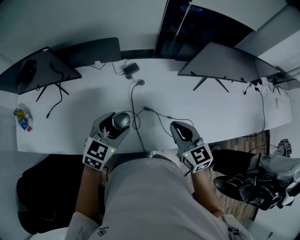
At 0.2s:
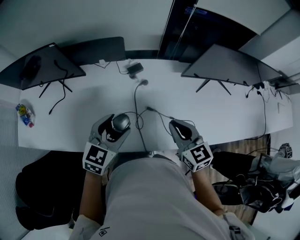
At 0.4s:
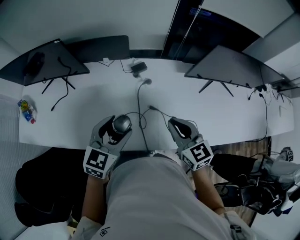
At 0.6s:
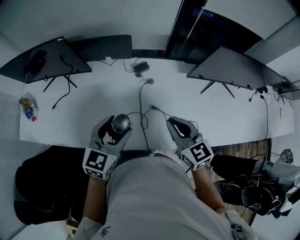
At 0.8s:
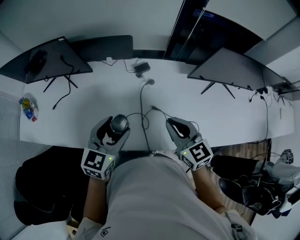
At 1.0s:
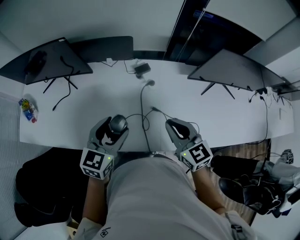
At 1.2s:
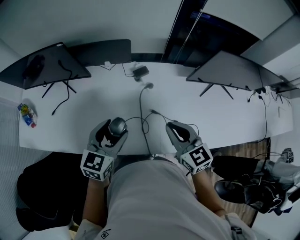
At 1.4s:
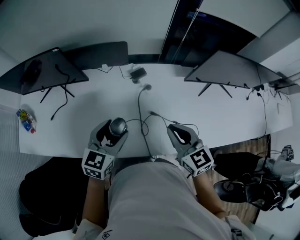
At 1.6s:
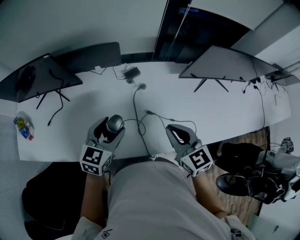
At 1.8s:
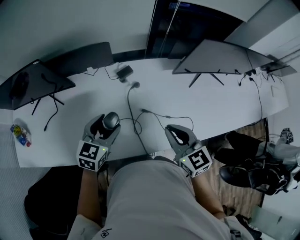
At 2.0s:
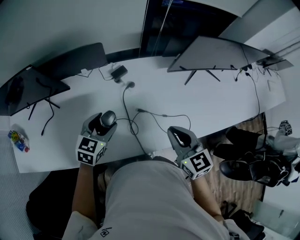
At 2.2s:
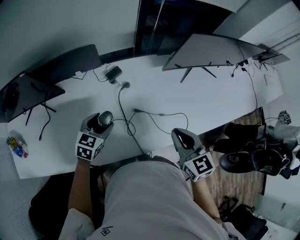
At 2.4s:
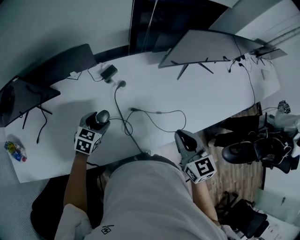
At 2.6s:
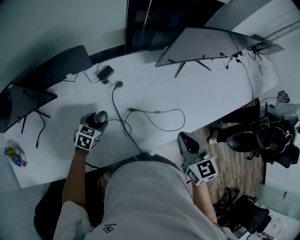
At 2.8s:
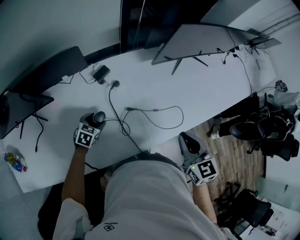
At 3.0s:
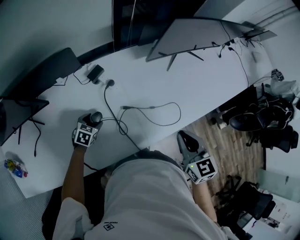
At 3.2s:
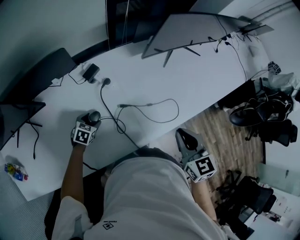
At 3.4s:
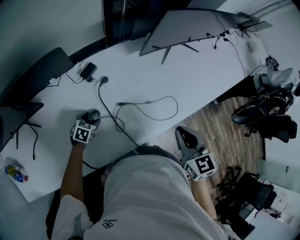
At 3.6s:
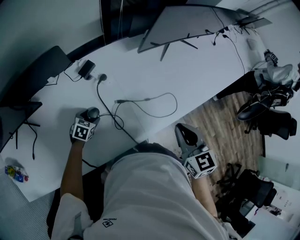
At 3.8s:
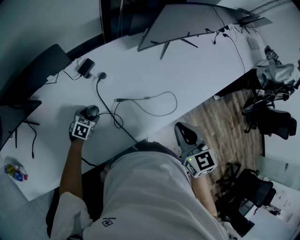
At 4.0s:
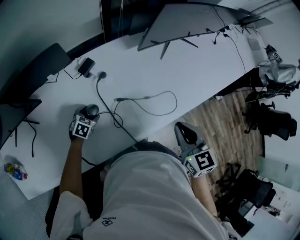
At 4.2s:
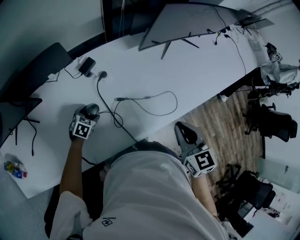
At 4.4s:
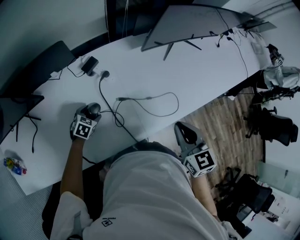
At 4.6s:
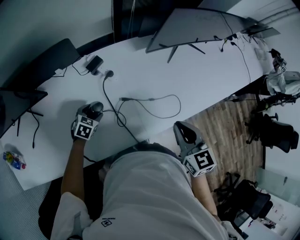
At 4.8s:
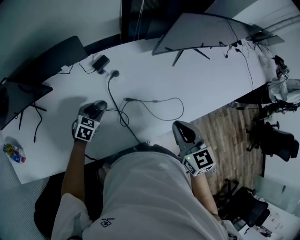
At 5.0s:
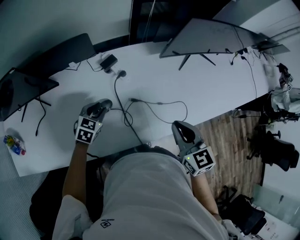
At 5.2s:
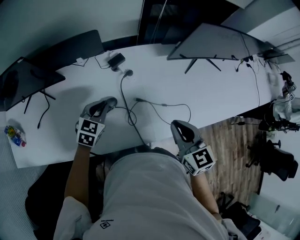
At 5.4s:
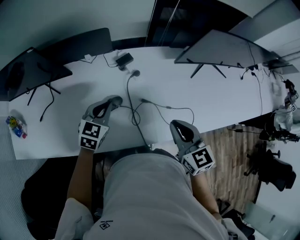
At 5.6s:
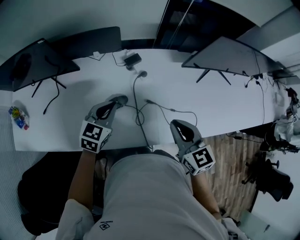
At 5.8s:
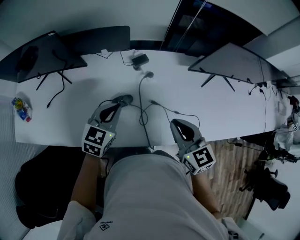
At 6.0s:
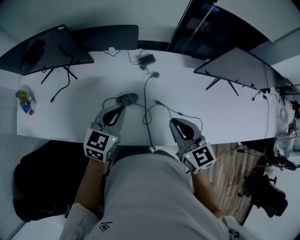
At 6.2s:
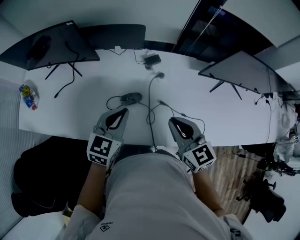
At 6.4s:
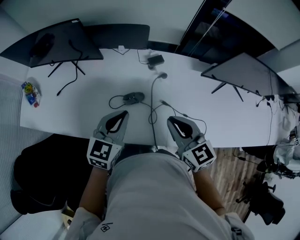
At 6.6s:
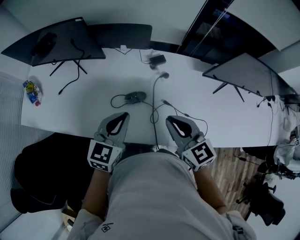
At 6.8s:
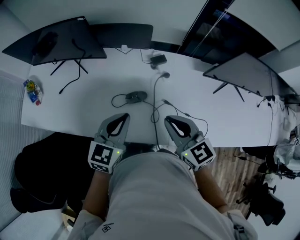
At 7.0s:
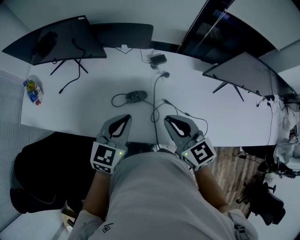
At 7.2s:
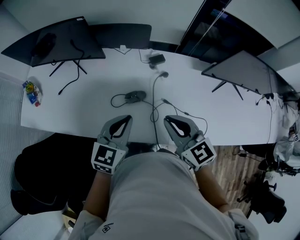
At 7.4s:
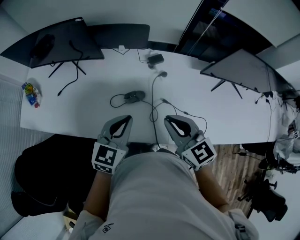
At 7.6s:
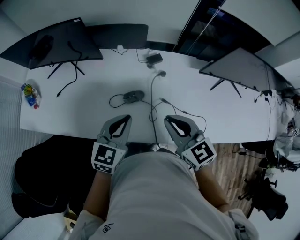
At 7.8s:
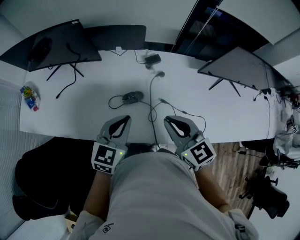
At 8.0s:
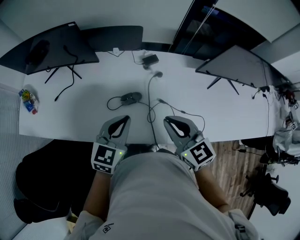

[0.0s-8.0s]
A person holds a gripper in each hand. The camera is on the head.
1.6s to 3.2s: The left gripper goes some 25 cm downward, and points its fingers roughly 30 degrees further downward. Meanwhile the right gripper shifts by approximately 15 cm, and changes its angle by about 30 degrees.
3.2s to 4.8s: The left gripper shifts approximately 5 cm upward.
4.8s to 6.4s: The right gripper changes place by approximately 15 cm, and swivels roughly 30 degrees. The left gripper is displaced upward by some 20 cm, points its fingers some 30 degrees further upward, and closes up.
6.4s to 8.0s: The grippers stay close to where they were, moving slightly.

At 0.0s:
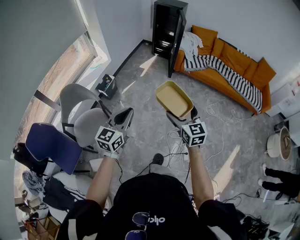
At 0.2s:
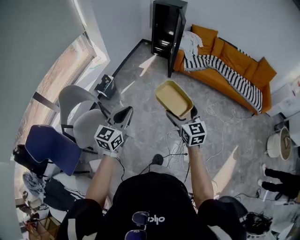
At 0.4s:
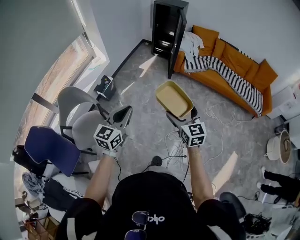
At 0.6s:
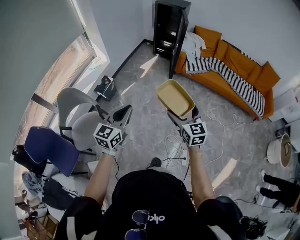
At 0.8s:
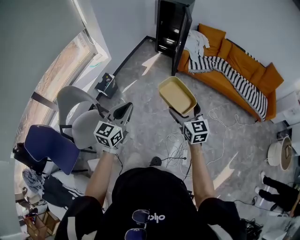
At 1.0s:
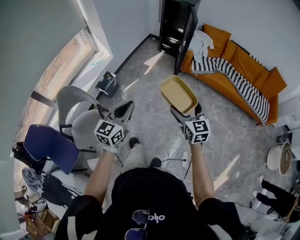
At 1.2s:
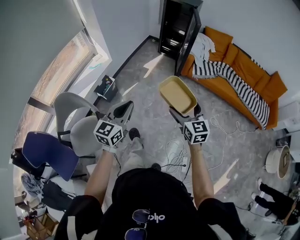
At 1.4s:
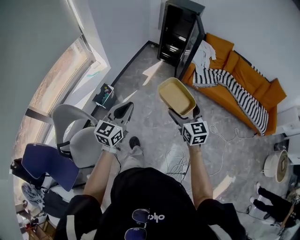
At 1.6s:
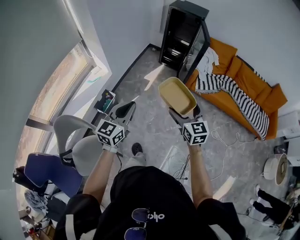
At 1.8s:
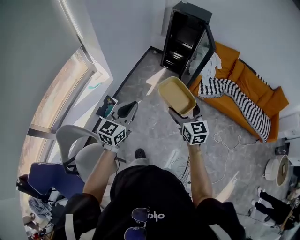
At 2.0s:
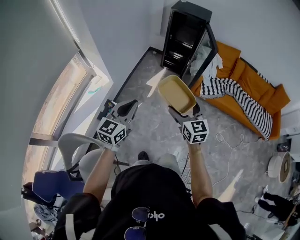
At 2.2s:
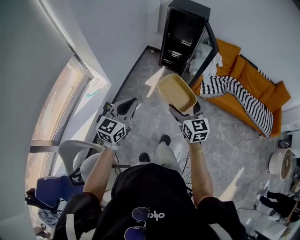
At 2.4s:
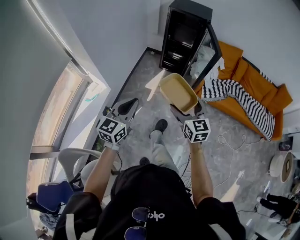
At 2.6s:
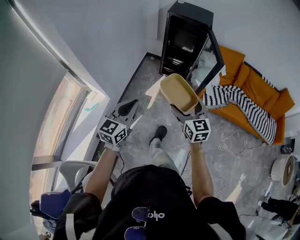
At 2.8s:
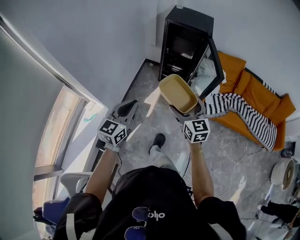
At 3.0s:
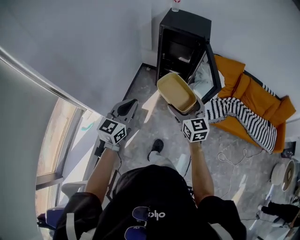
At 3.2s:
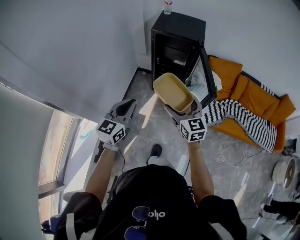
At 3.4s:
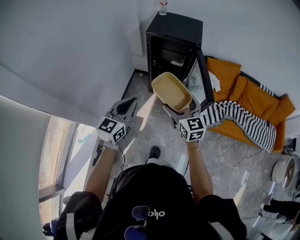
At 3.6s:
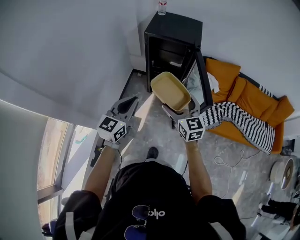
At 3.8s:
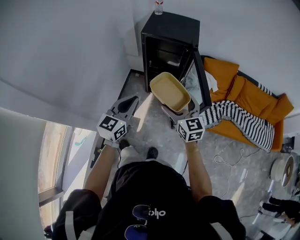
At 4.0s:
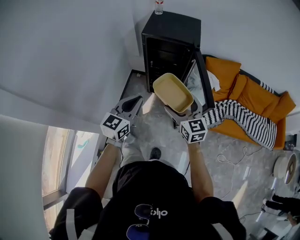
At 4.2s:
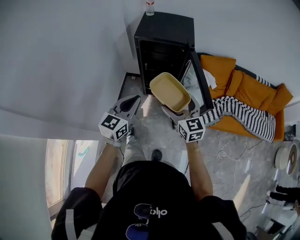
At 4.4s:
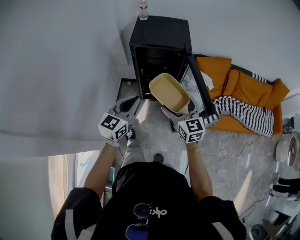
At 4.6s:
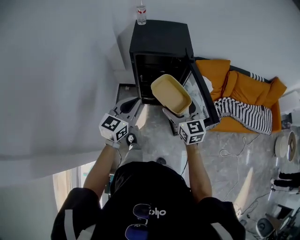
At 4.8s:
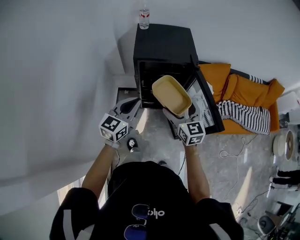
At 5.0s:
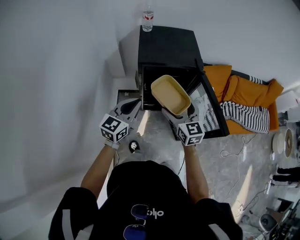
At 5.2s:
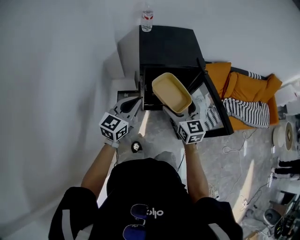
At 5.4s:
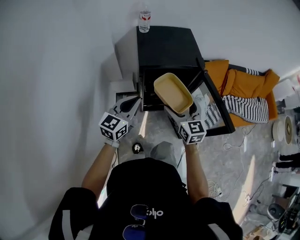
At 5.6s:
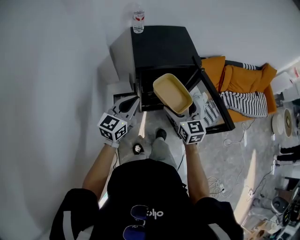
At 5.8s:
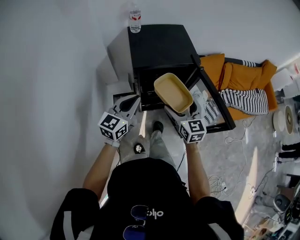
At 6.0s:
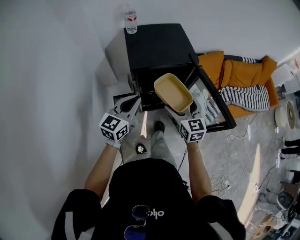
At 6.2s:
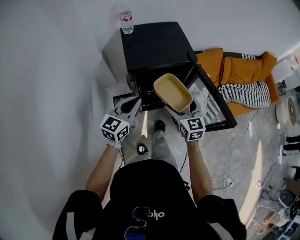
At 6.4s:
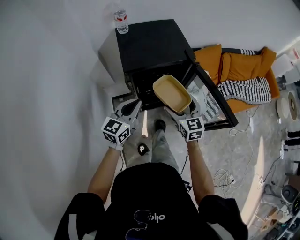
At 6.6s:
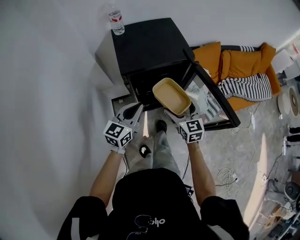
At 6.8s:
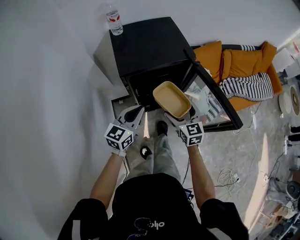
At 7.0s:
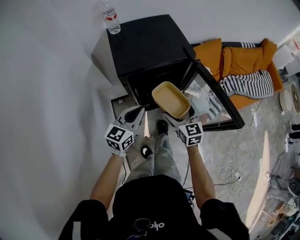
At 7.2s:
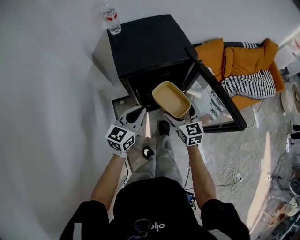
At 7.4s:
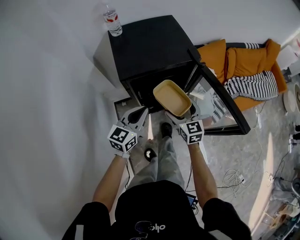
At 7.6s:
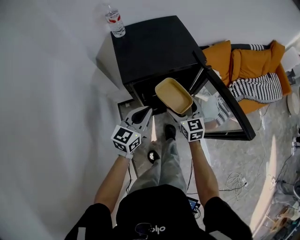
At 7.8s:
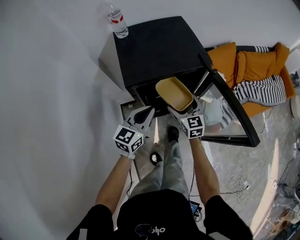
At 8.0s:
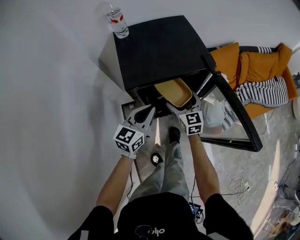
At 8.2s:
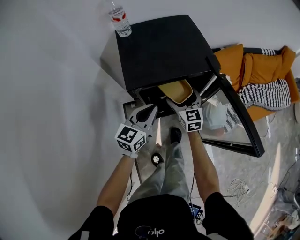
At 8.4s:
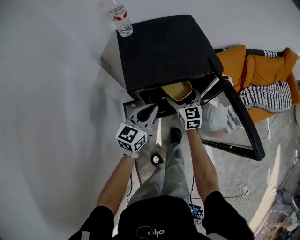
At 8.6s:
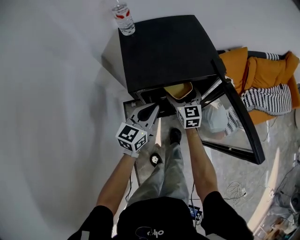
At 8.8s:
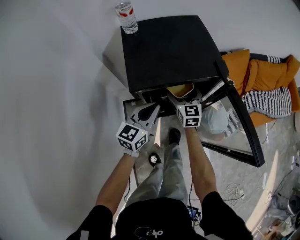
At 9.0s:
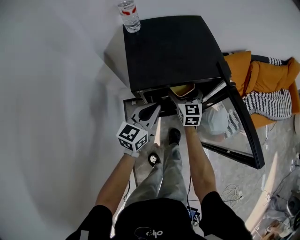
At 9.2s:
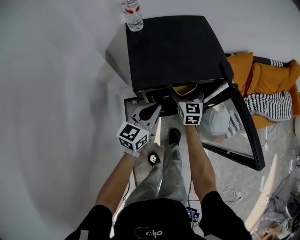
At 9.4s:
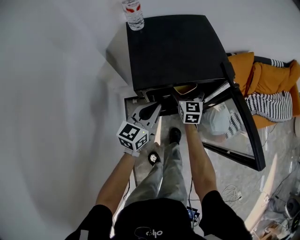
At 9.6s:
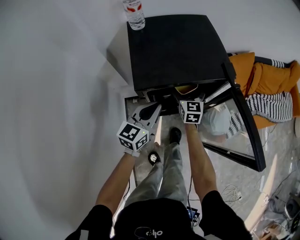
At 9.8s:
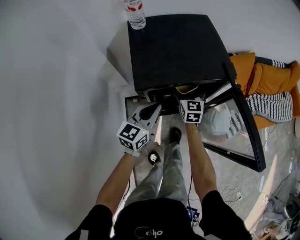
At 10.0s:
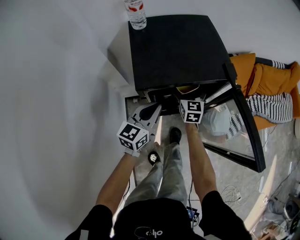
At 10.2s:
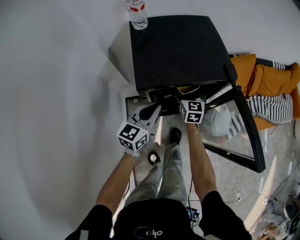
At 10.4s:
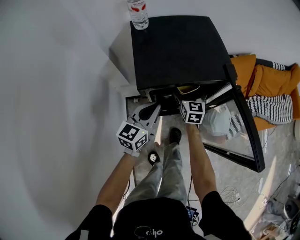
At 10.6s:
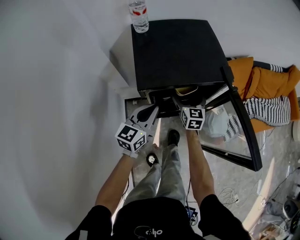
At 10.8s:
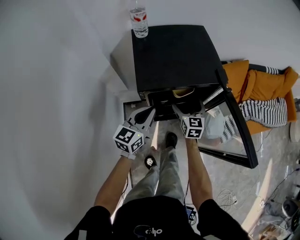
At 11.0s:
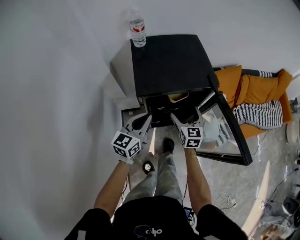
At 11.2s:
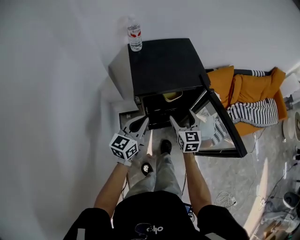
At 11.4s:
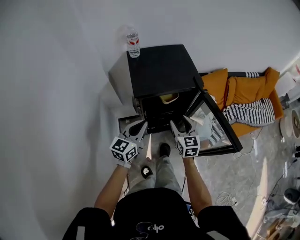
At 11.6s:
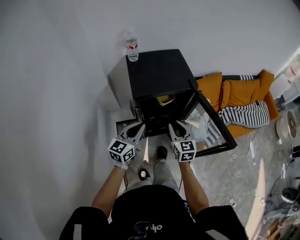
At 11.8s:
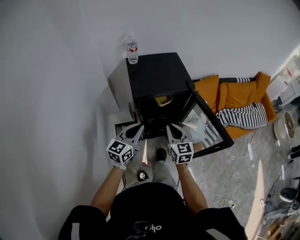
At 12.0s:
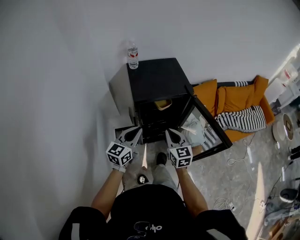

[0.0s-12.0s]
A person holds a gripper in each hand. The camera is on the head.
0.0s to 1.6s: The pair of grippers is taken forward, approximately 40 cm.
1.6s to 3.0s: The two grippers travel together, forward, approximately 50 cm.
3.0s to 4.4s: The grippers both shift forward by about 25 cm.
4.4s to 6.0s: The two grippers go roughly 20 cm forward and to the left. The right gripper changes its angle by approximately 20 degrees.
6.0s to 7.6s: The grippers both shift downward and forward by some 15 cm.
7.6s to 9.0s: The right gripper travels forward and to the left by some 15 cm, while the left gripper goes approximately 5 cm forward.
9.0s to 10.4s: The grippers make only small movements.
10.4s to 12.0s: The left gripper shifts some 20 cm backward and upward, while the right gripper heads backward and upward, covering about 30 cm, and closes its fingers.

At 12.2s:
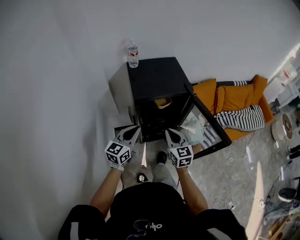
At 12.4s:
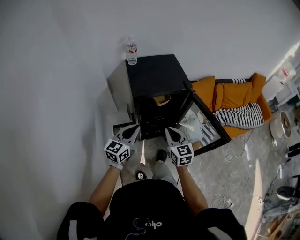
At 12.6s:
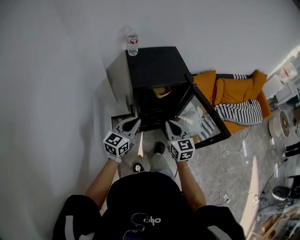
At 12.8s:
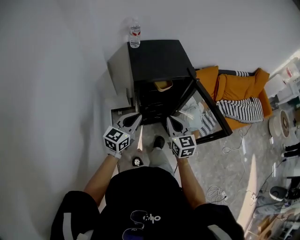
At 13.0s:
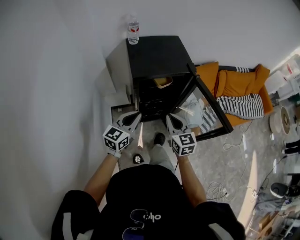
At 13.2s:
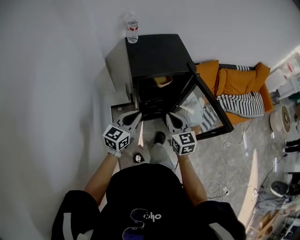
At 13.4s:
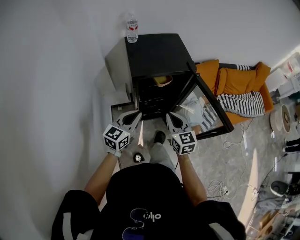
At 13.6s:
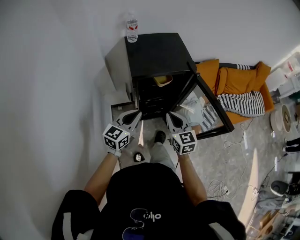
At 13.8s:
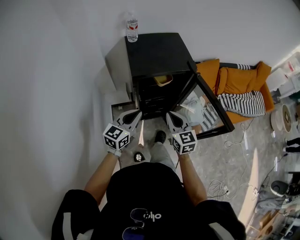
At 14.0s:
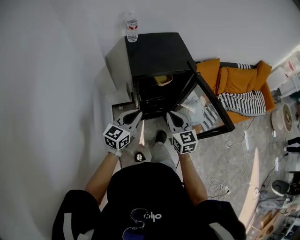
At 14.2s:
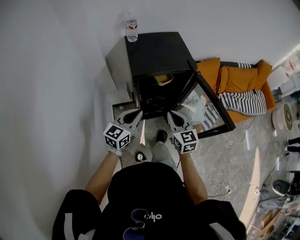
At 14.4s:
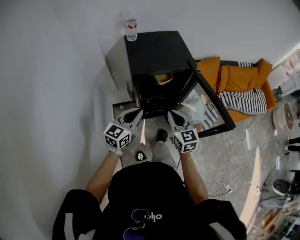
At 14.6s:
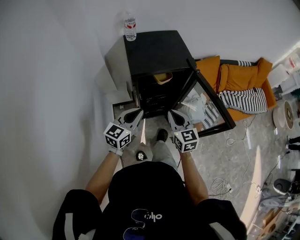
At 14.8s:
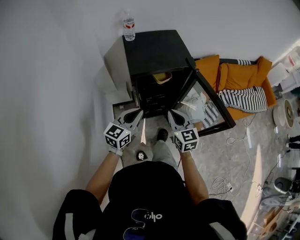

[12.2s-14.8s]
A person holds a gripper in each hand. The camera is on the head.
12.2s to 14.8s: The grippers stay close to where they were, moving slightly.

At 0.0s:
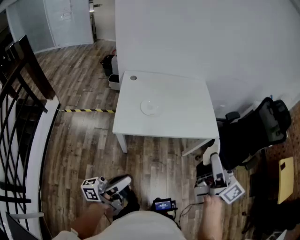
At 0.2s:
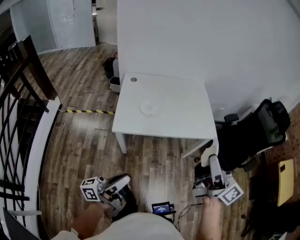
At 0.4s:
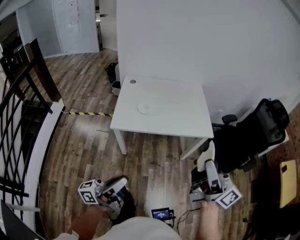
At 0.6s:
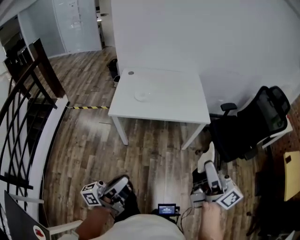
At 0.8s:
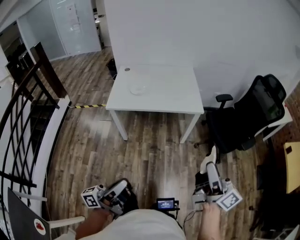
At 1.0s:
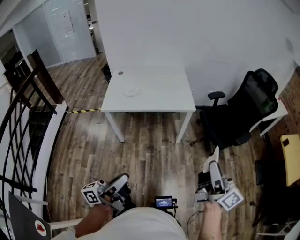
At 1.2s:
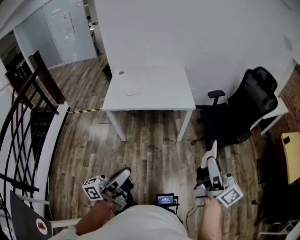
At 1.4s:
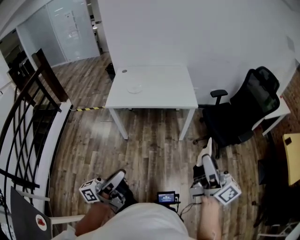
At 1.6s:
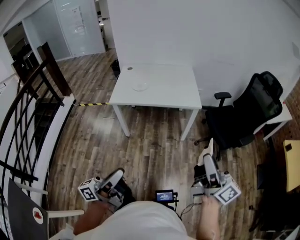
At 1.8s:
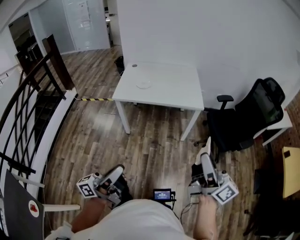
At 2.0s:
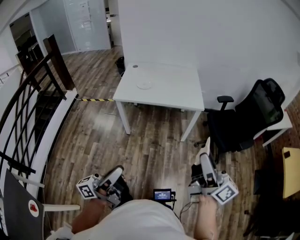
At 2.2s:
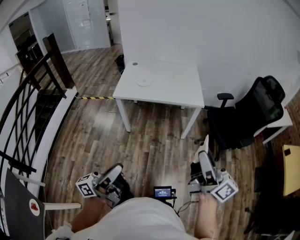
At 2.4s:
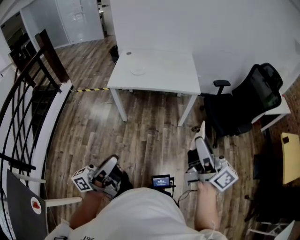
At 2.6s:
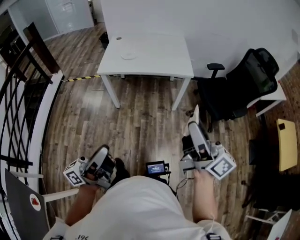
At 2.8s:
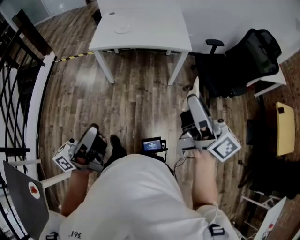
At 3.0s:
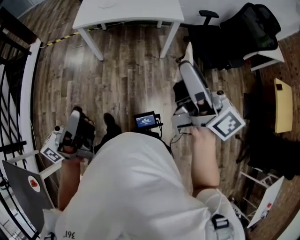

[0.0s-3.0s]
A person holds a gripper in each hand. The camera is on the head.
0.0s to 1.6s: The two grippers go about 40 cm backward and to the right.
1.6s to 3.0s: There are only small adjustments of the grippers.
